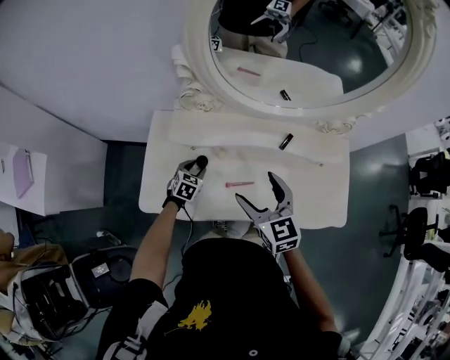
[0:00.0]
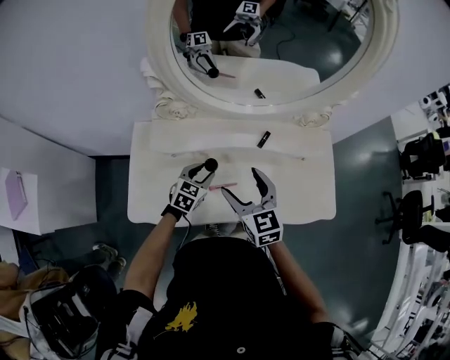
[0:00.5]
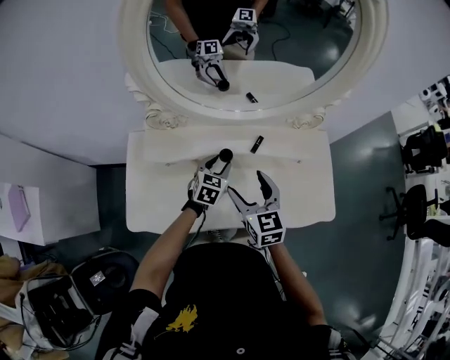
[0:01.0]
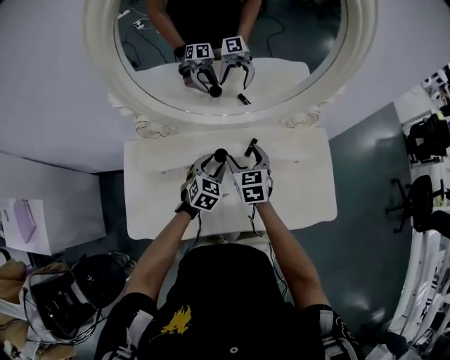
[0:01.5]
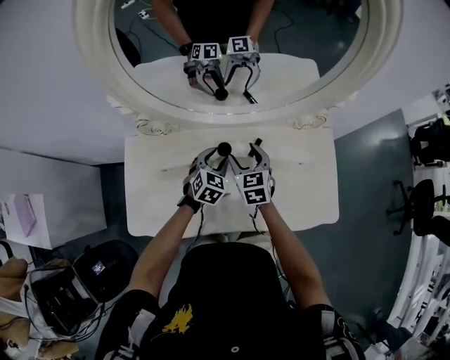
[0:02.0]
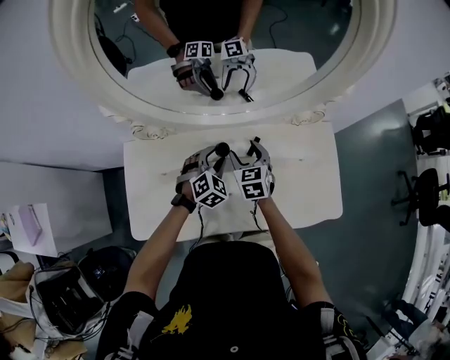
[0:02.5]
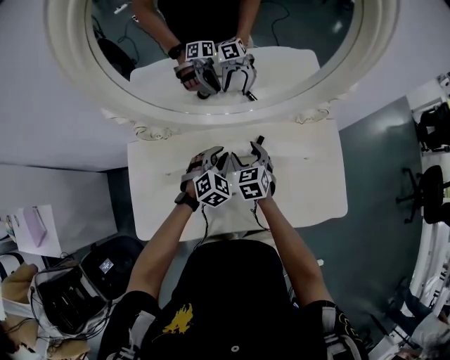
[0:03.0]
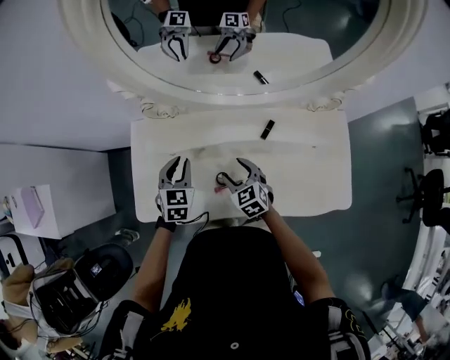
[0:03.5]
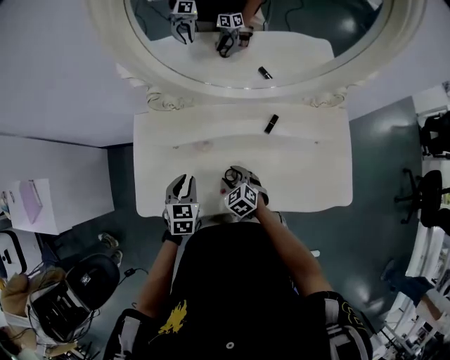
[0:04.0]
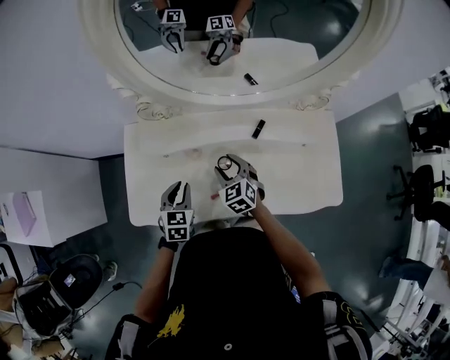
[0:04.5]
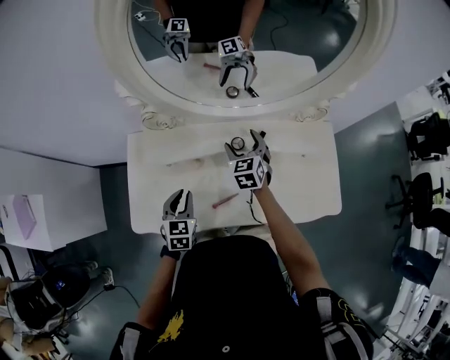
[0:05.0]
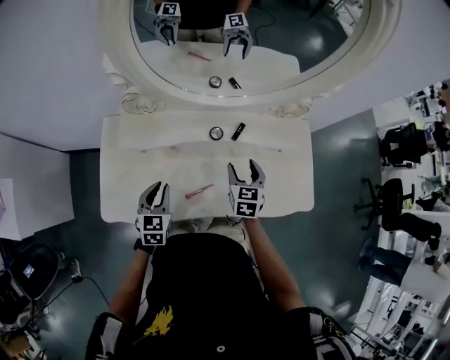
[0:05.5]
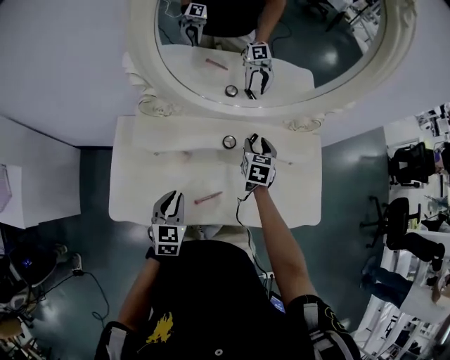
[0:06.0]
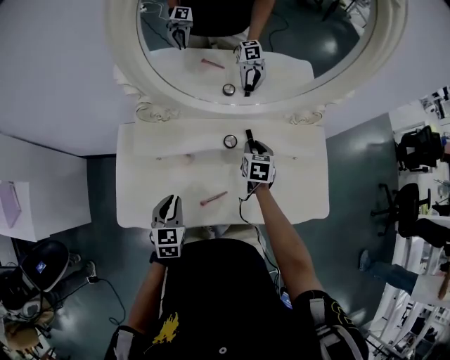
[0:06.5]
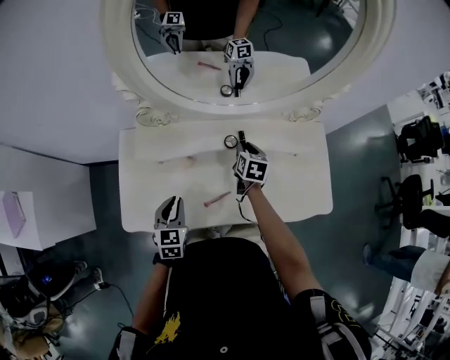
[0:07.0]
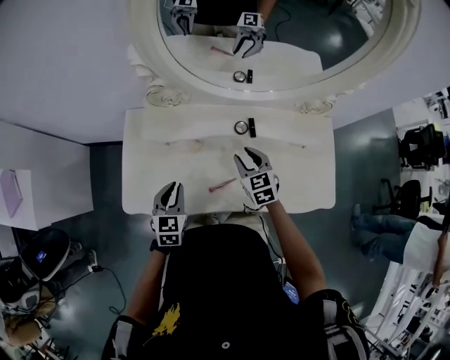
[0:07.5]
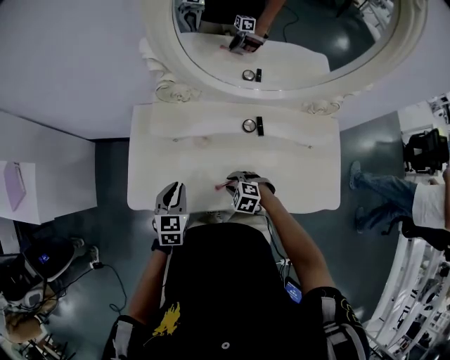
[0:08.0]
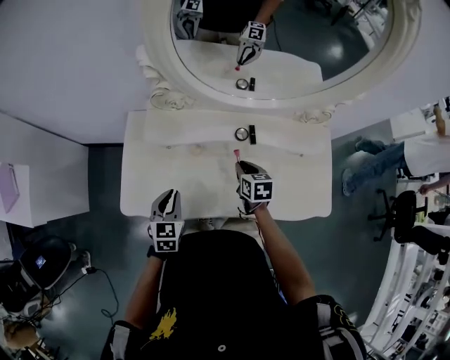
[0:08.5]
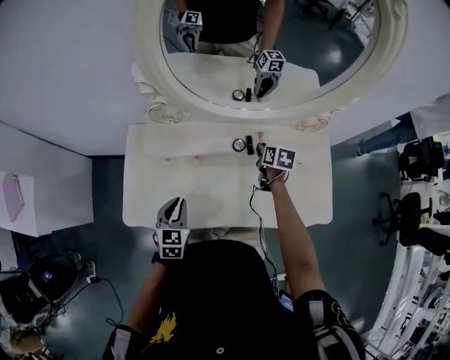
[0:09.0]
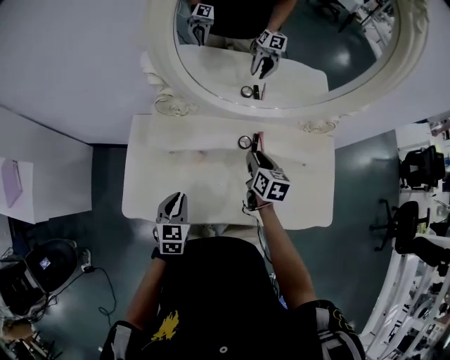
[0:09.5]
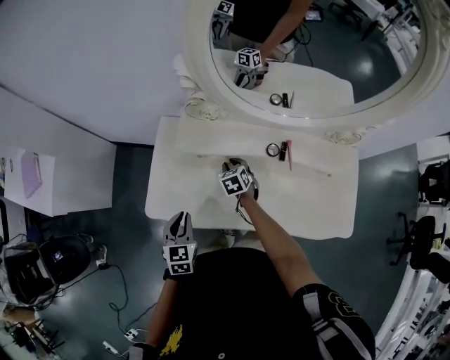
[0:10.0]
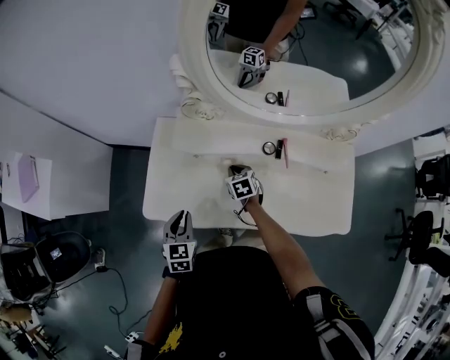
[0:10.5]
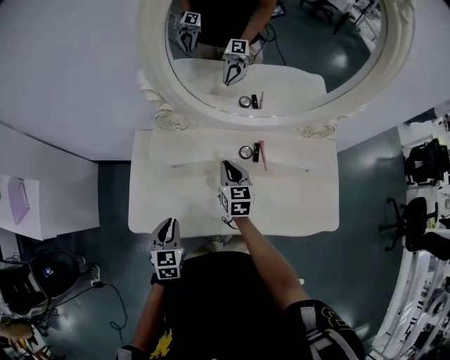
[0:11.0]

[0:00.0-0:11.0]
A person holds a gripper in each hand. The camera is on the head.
0:00.0 to 0:02.0: The left gripper heads to the right, upward and forward, covering roughly 25 cm, while the right gripper is displaced forward, downward and to the right by some 25 cm.
0:02.0 to 0:03.5: The left gripper is displaced to the left and backward by approximately 15 cm. Meanwhile the right gripper goes about 15 cm backward, downward and to the left, and changes its angle by some 20 degrees.
0:03.5 to 0:05.5: The left gripper travels backward by some 10 cm, while the right gripper is displaced to the right by some 15 cm, and rotates about 30 degrees.
0:05.5 to 0:07.5: The right gripper goes roughly 10 cm to the left, goes forward and returns, roughly 10 cm each way, and turns by about 30 degrees.
0:07.5 to 0:09.0: The right gripper moves some 15 cm downward and comes back, and turns by some 40 degrees.
0:09.0 to 0:11.0: The left gripper moves to the left, approximately 5 cm, while the right gripper moves to the left, about 20 cm, and turns by roughly 30 degrees.

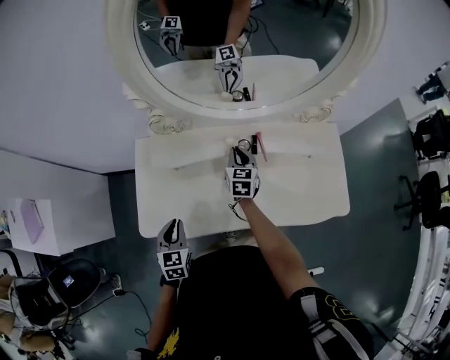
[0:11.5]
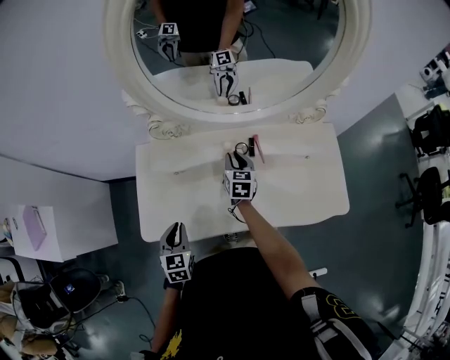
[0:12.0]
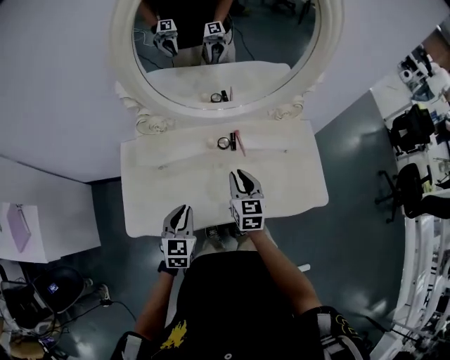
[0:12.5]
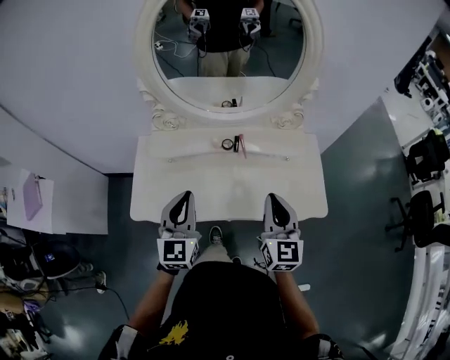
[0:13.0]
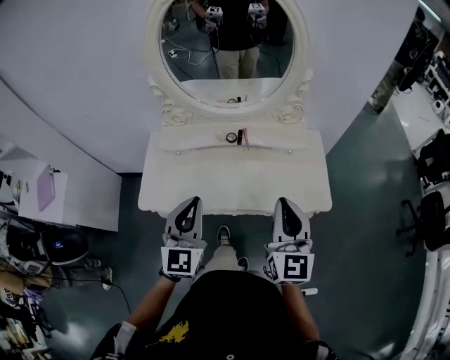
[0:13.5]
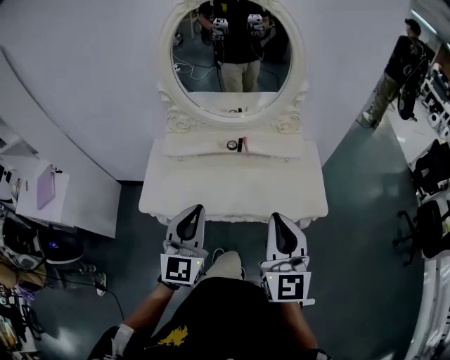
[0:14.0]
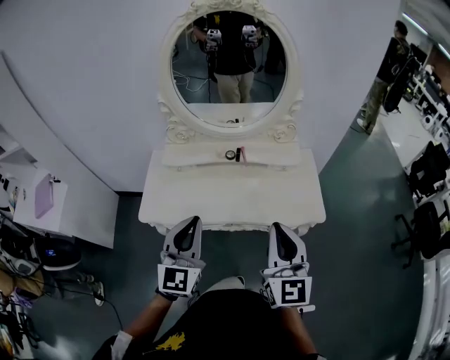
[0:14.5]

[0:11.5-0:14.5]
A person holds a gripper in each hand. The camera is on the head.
0:11.5 to 0:13.0: The left gripper heads upward and to the right, covering some 30 cm, and angles its fingers upward, by about 30 degrees. The right gripper shifts roughly 40 cm backward, upward and to the right, and changes its angle by about 20 degrees.
0:13.0 to 0:14.5: Both grippers travel together backward and upward, approximately 20 cm.

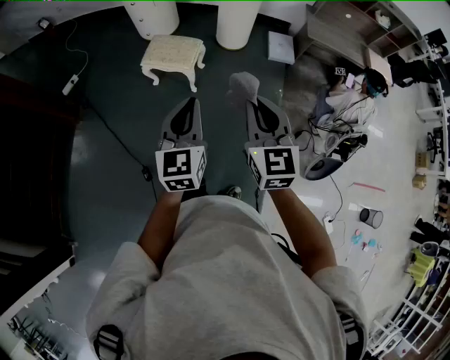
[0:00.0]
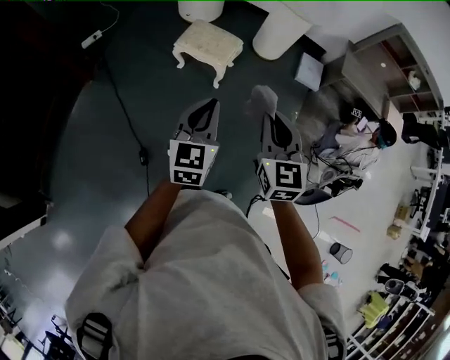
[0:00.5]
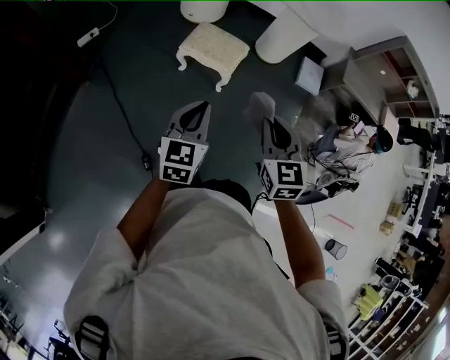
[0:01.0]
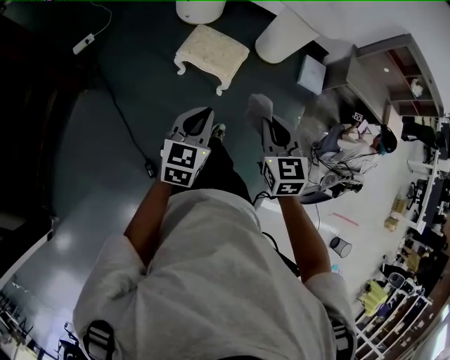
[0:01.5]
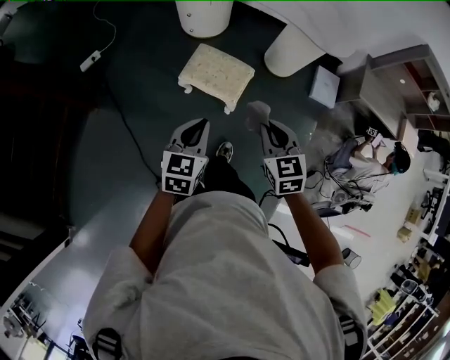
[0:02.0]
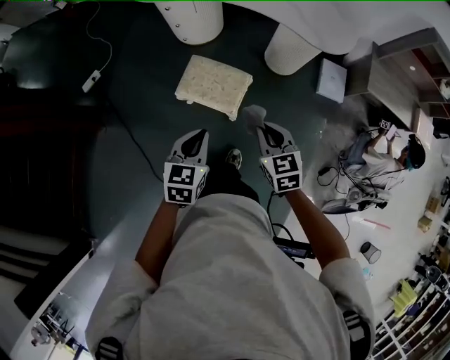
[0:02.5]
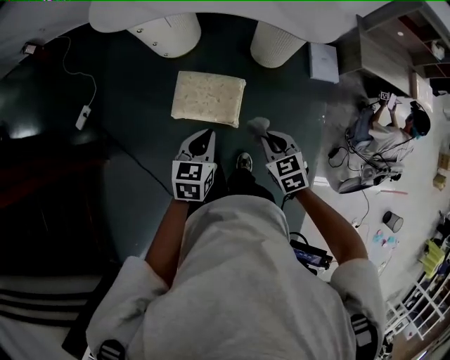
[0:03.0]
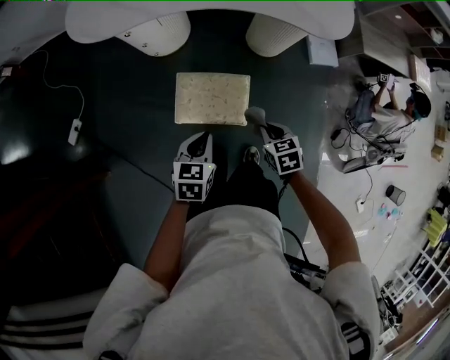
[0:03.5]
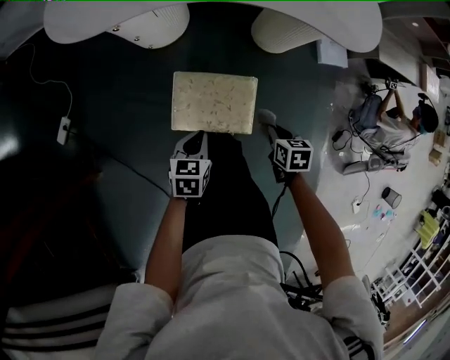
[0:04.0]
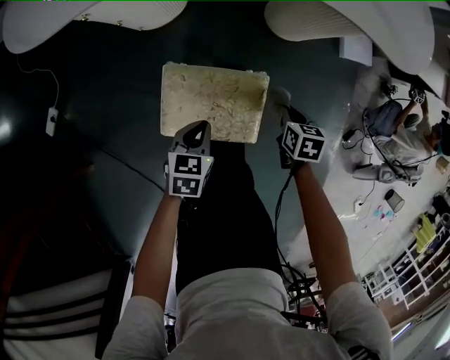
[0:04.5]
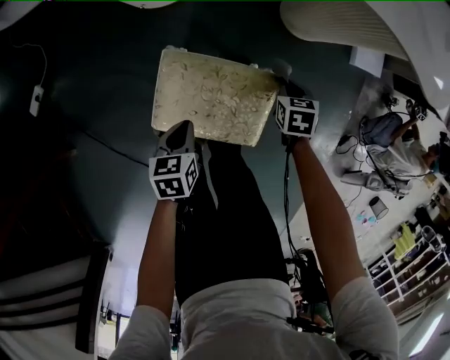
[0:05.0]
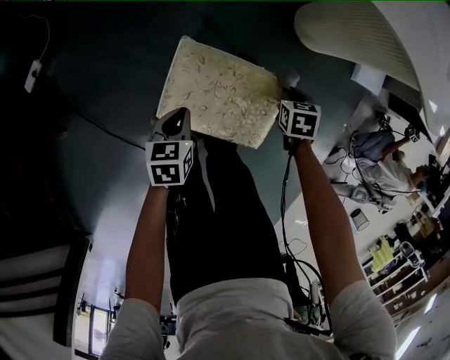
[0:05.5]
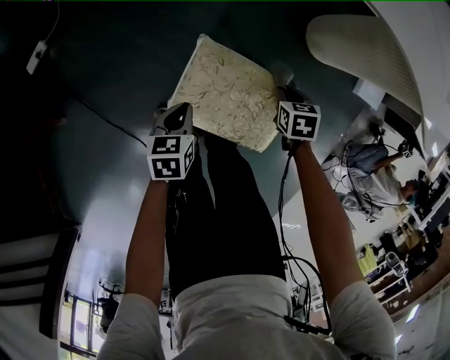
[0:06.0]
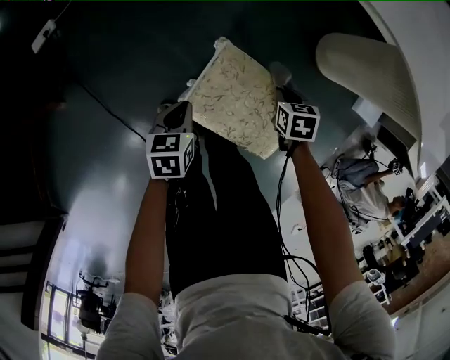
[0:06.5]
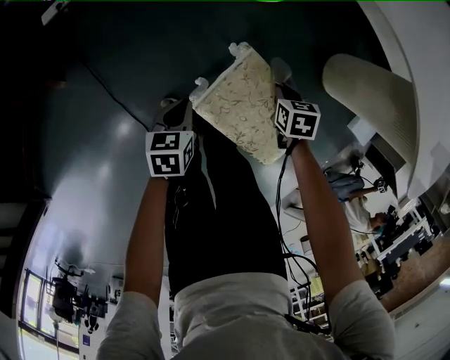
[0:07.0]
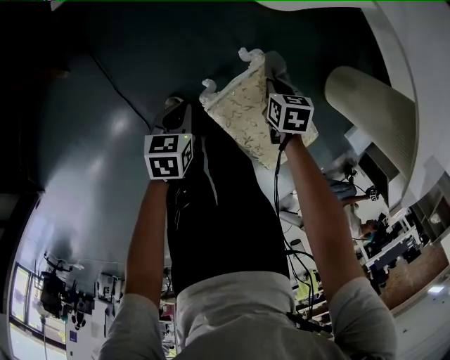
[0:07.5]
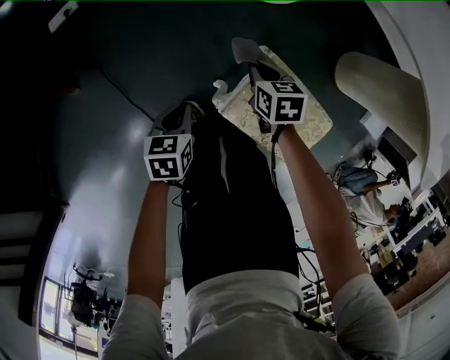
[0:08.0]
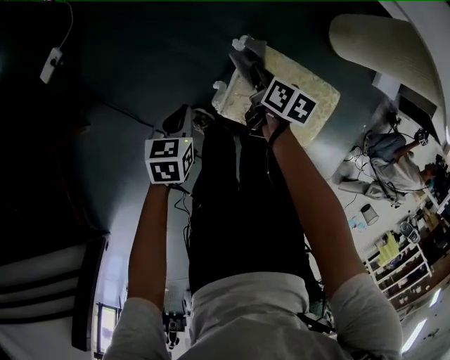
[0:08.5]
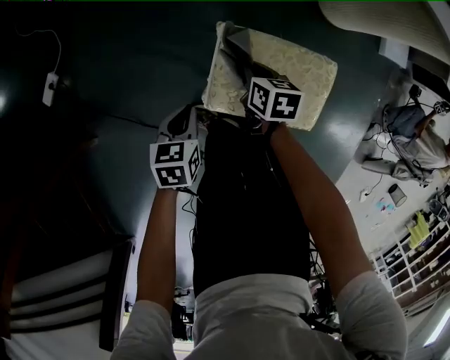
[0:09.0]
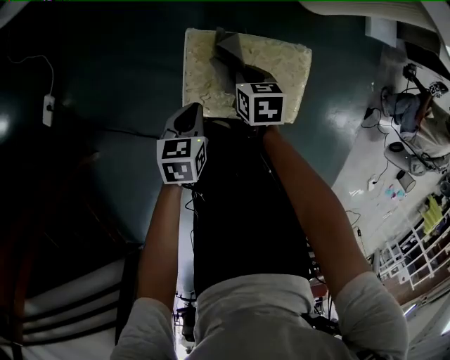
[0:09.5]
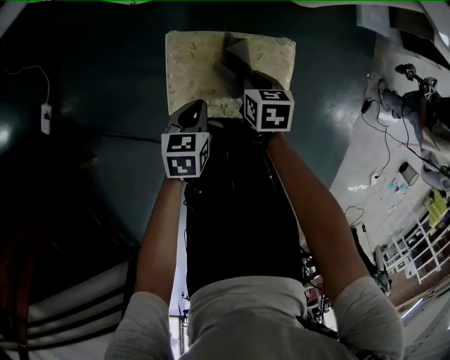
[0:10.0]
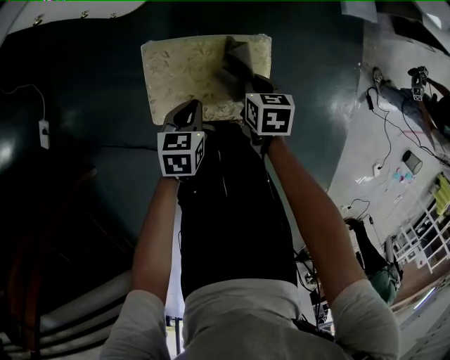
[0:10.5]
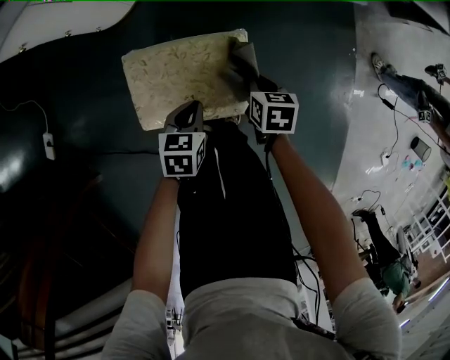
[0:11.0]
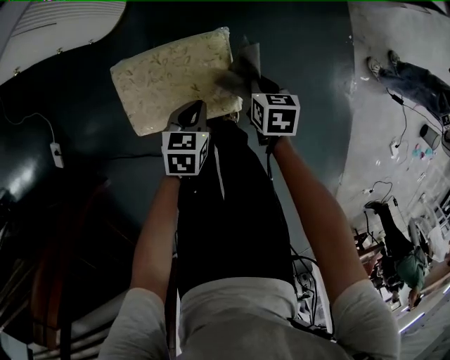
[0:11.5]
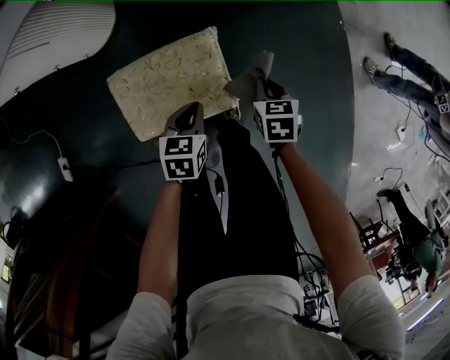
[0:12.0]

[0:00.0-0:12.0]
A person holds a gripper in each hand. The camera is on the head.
0:00.0 to 0:02.0: Both grippers move forward, to the left and downward, roughly 35 cm. The left gripper changes its angle by approximately 20 degrees; the right gripper turns by roughly 30 degrees.
0:02.0 to 0:04.0: The right gripper heads downward and forward, covering roughly 40 cm, and rolls clockwise, seen from behind, by roughly 40 degrees; the left gripper goes about 40 cm forward and downward, and swivels roughly 30 degrees.
0:04.0 to 0:06.0: The left gripper is displaced downward and to the left by roughly 25 cm, and rotates approximately 20 degrees; the right gripper heads downward, forward and to the left, covering some 30 cm, and turns by some 30 degrees.
0:06.0 to 0:08.0: The right gripper is displaced to the left by roughly 30 cm, and rotates about 20 degrees; the left gripper goes about 20 cm to the left.
0:08.0 to 0:10.0: The left gripper moves about 25 cm, and rotates roughly 40 degrees. The right gripper moves approximately 25 cm, and changes its angle by about 40 degrees.
0:10.0 to 0:12.0: Both grippers travel together to the right, approximately 20 cm.
